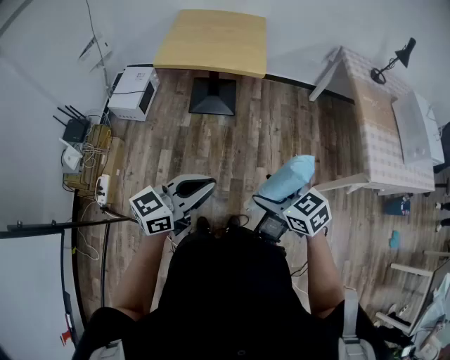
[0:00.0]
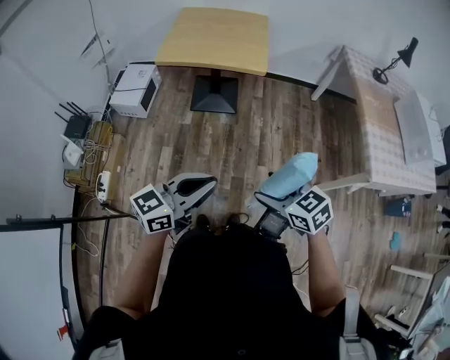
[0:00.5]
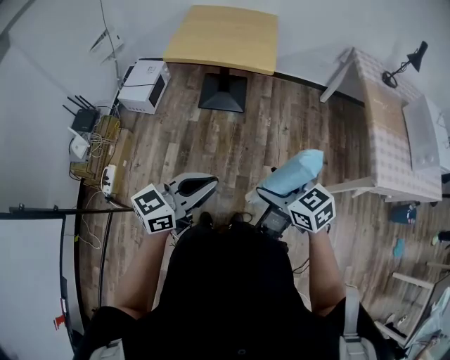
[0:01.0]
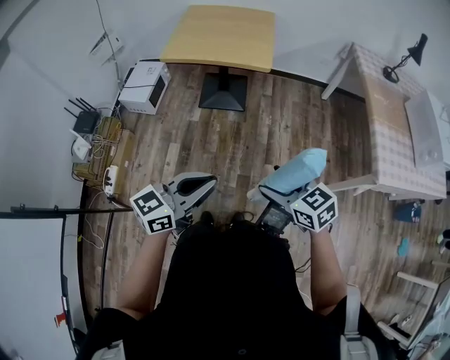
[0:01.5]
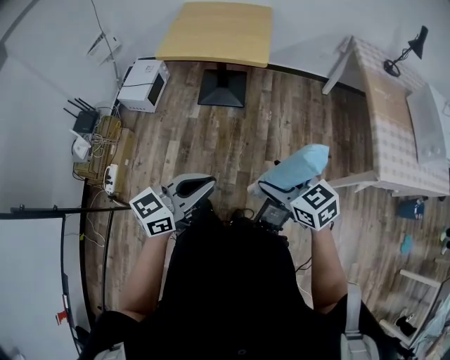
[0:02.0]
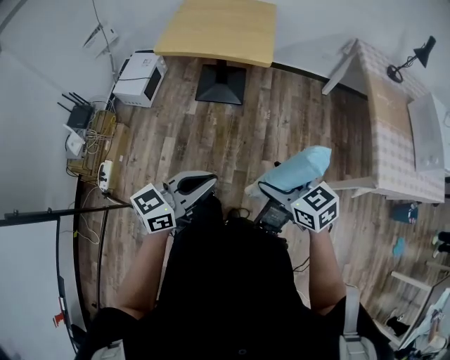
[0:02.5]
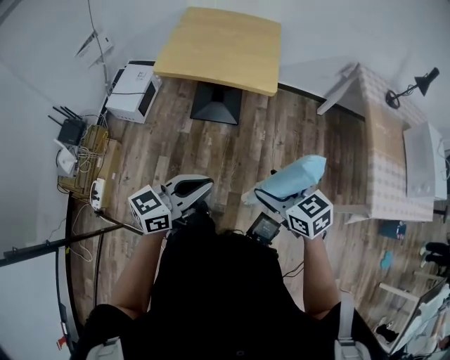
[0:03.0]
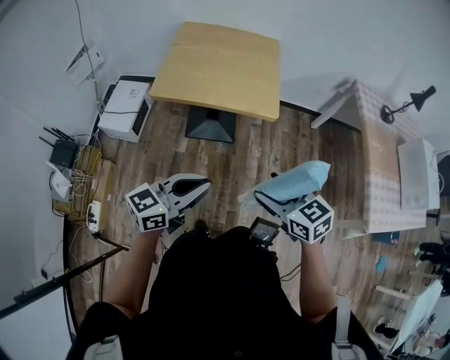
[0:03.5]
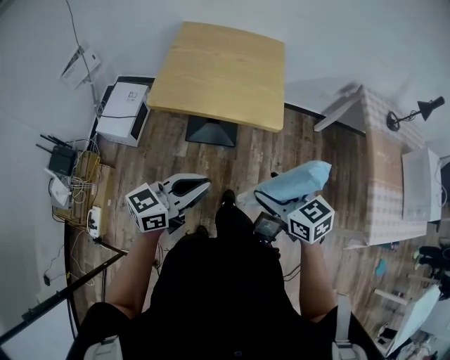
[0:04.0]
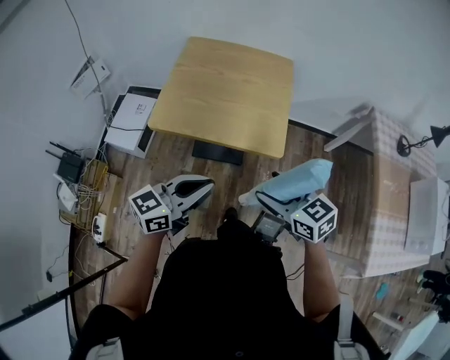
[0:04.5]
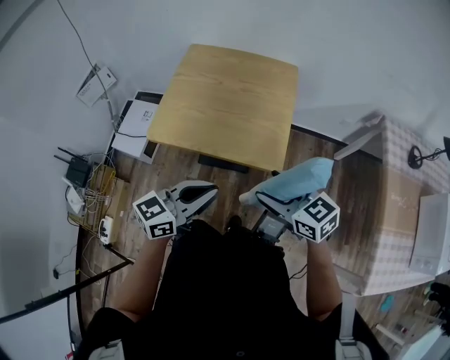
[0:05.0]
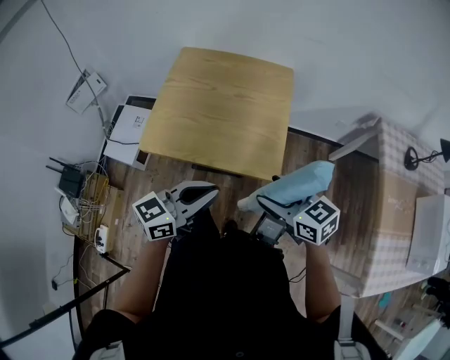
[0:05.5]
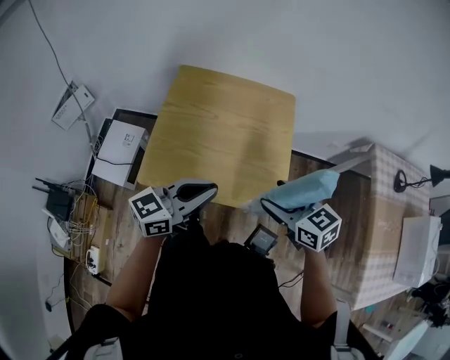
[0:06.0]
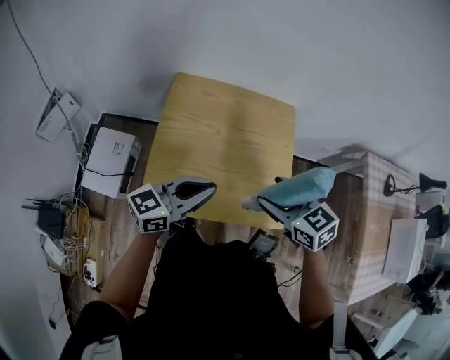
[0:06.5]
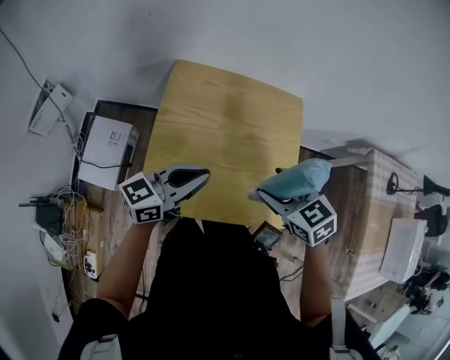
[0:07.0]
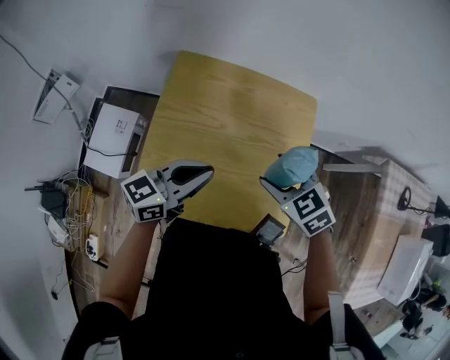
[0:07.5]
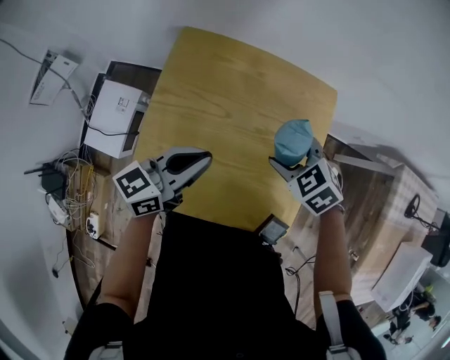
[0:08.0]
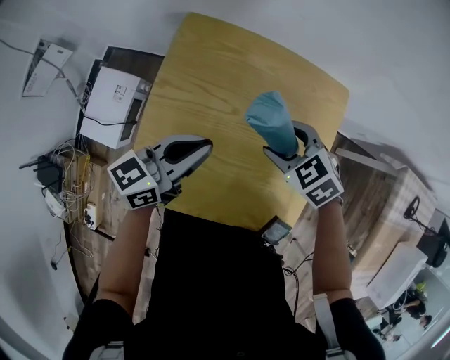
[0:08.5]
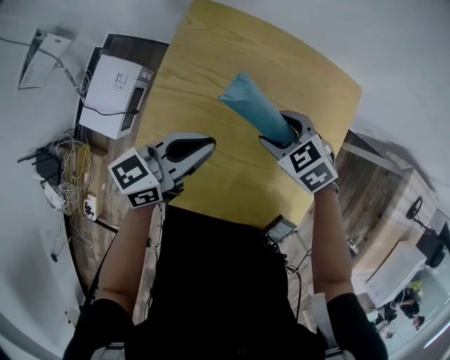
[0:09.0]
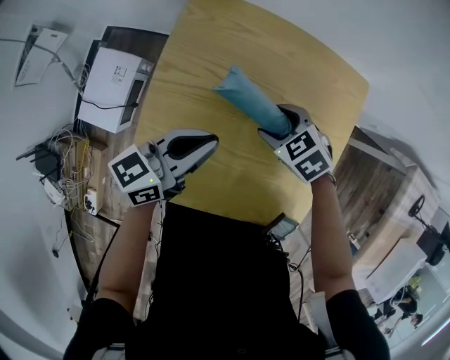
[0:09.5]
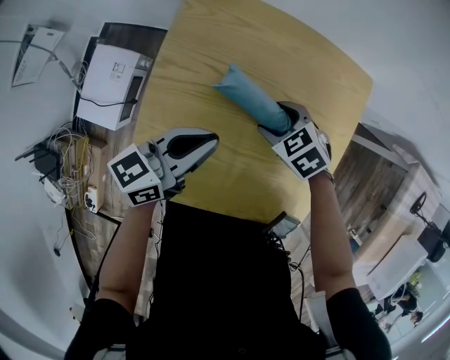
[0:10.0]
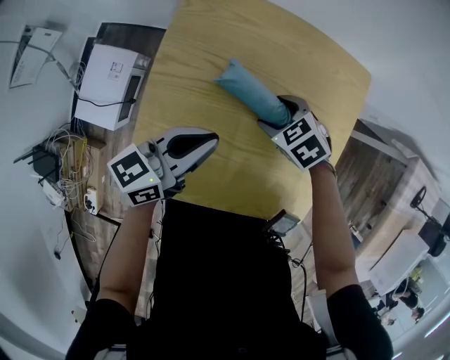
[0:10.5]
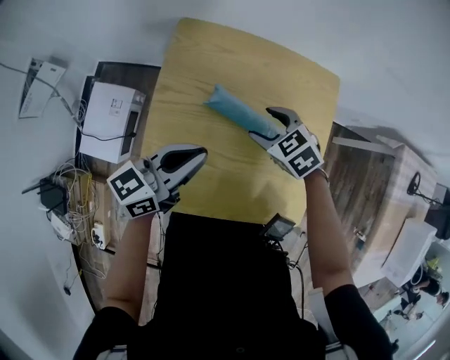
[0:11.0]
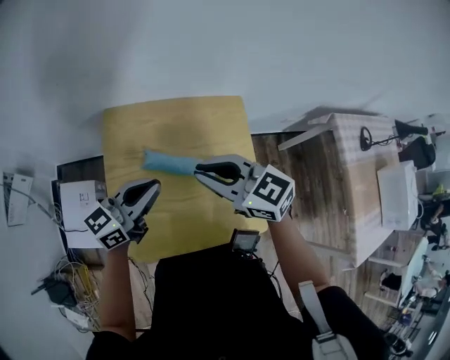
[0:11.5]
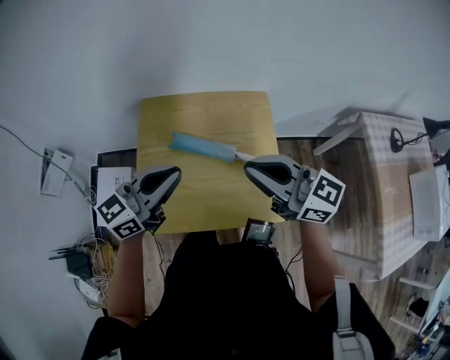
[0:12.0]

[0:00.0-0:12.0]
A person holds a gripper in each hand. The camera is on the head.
0:00.0 to 0:02.0: The grippers both shift to the right by about 5 cm.
0:02.0 to 0:04.0: Both grippers move forward and to the left, roughly 35 cm.
0:04.0 to 0:06.0: Both grippers move forward, roughly 30 cm.
0:06.0 to 0:08.0: Both grippers move forward and downward, approximately 25 cm. The right gripper tips its fingers downward by roughly 30 degrees.
0:08.0 to 0:10.0: The right gripper heads downward and to the left, covering about 15 cm; the left gripper moves downward, about 5 cm.
0:10.0 to 0:12.0: The left gripper is displaced upward and to the right by about 20 cm, and changes its angle by approximately 30 degrees. Meanwhile the right gripper heads upward, covering approximately 30 cm, points its fingers some 70 degrees further upward, and closes up.

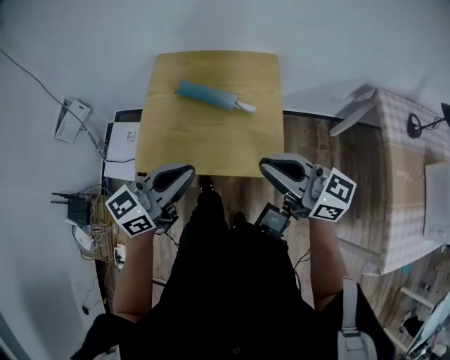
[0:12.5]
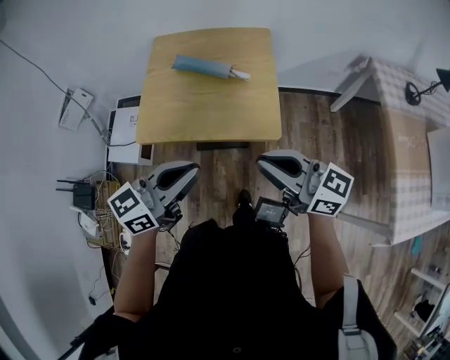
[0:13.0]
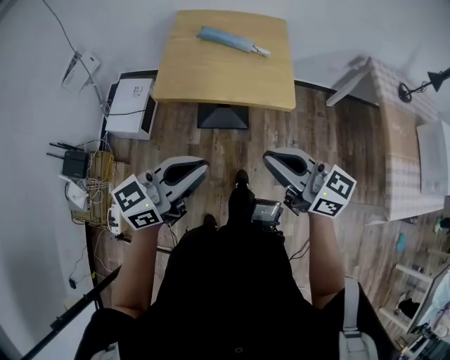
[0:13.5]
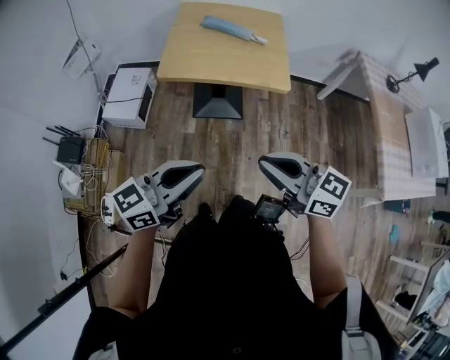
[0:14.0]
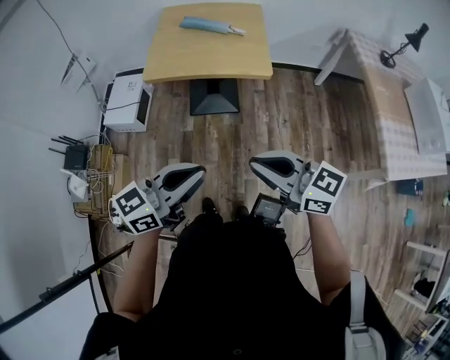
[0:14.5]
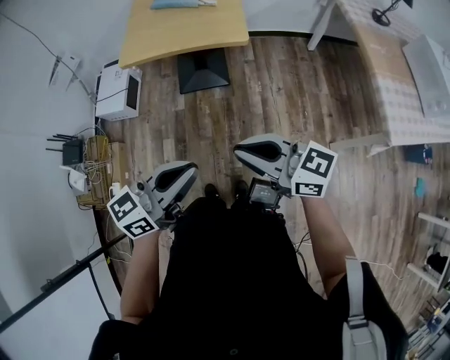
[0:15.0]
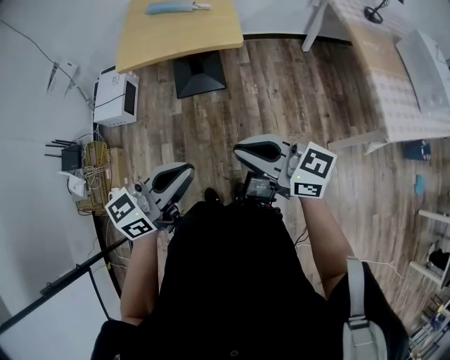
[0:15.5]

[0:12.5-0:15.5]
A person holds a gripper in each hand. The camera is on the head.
0:12.5 to 0:14.0: Both grippers are carried backward, about 40 cm.
0:14.0 to 0:15.5: Both grippers travel together to the right and backward, about 20 cm.

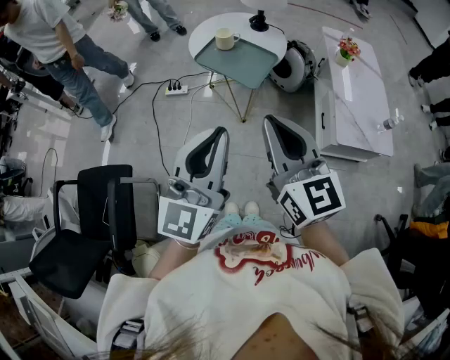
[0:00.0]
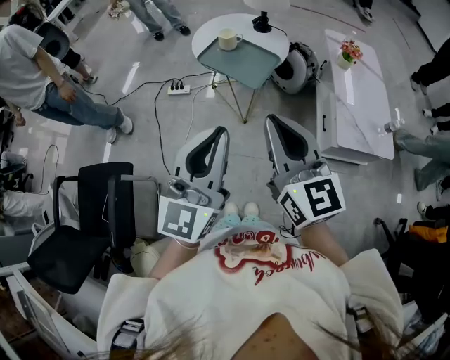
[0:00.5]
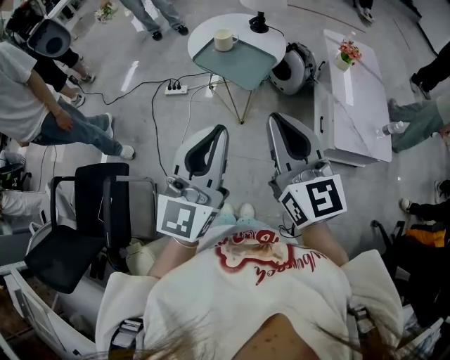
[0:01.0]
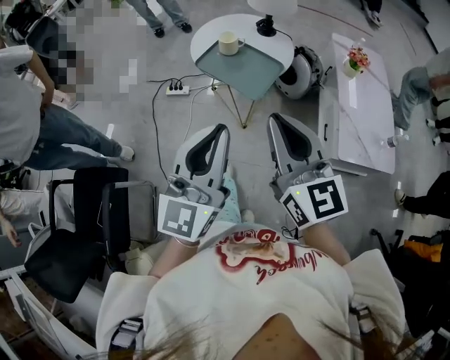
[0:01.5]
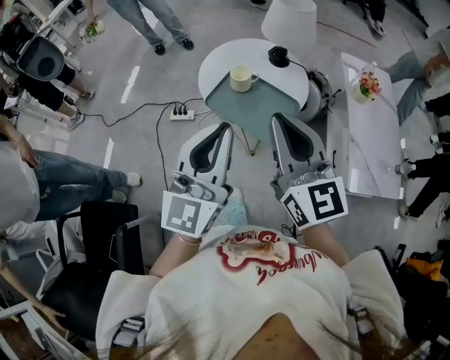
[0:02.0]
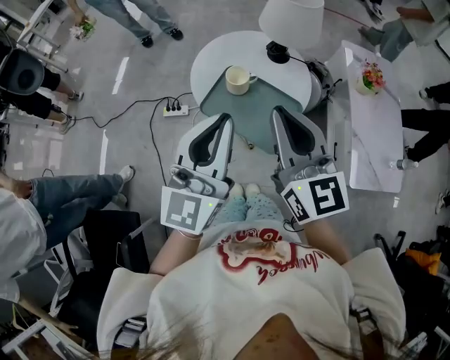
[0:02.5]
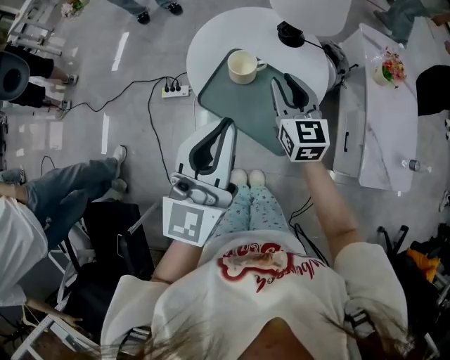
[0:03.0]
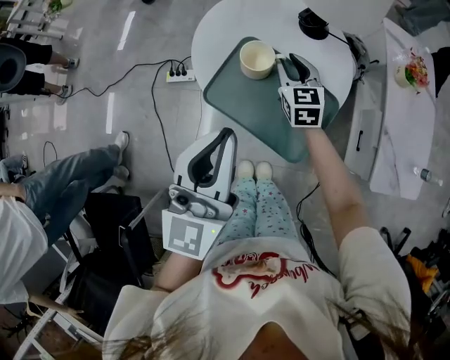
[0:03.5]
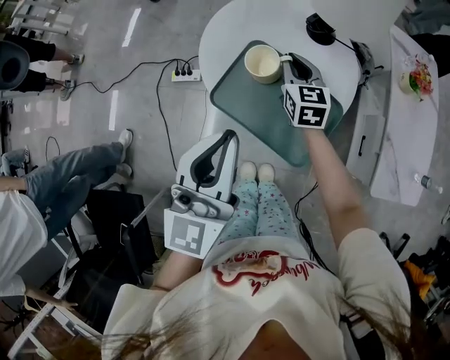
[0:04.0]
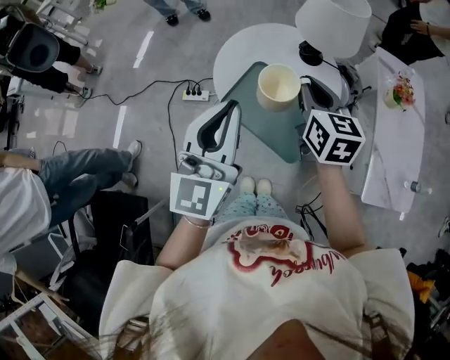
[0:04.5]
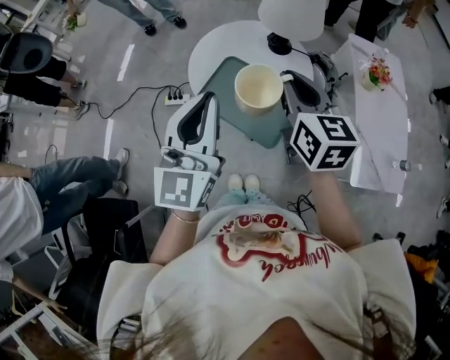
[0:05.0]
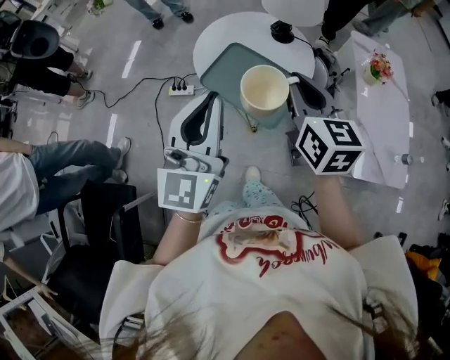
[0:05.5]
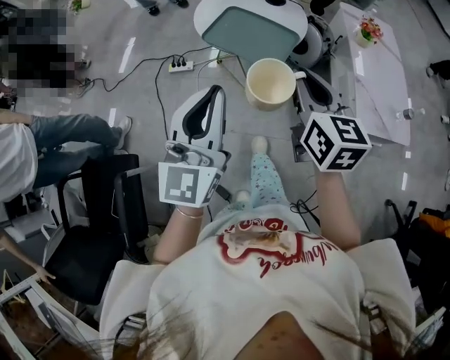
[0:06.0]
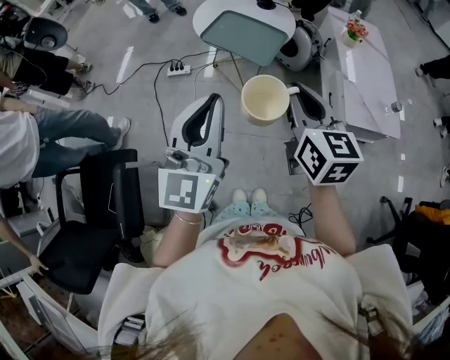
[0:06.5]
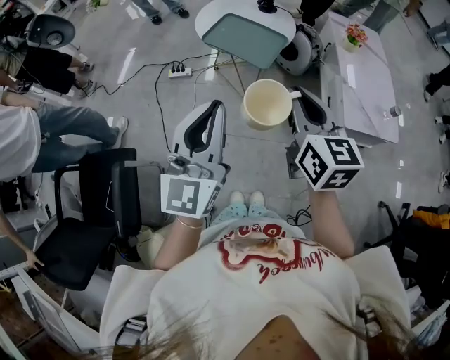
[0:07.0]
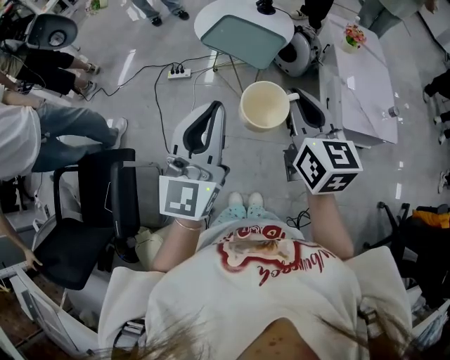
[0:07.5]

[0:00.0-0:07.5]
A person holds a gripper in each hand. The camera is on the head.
0:00.0 to 0:02.0: Both grippers move forward, approximately 25 cm.
0:02.0 to 0:04.0: The right gripper shifts approximately 50 cm forward and downward, and rotates approximately 30 degrees. Meanwhile the left gripper moves forward and downward, about 20 cm.
0:04.0 to 0:05.5: The left gripper moves backward and upward, about 15 cm. Meanwhile the right gripper shifts some 35 cm upward and backward.
0:05.5 to 0:07.5: The two grippers go roughly 30 cm backward.

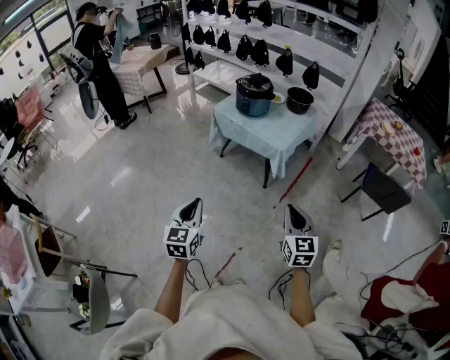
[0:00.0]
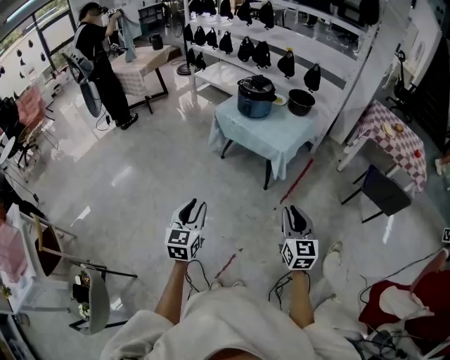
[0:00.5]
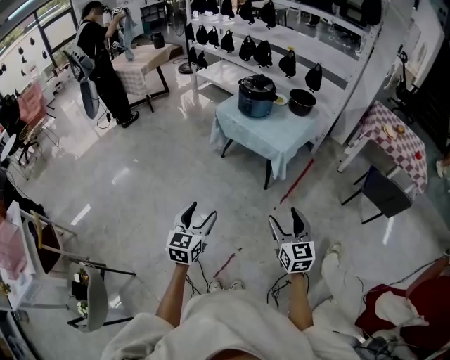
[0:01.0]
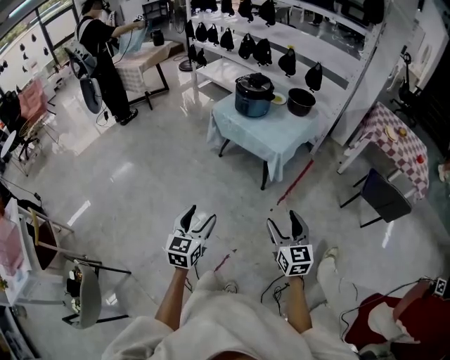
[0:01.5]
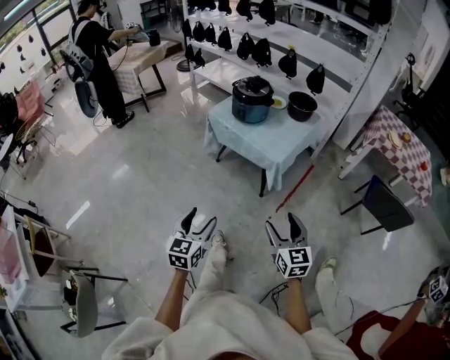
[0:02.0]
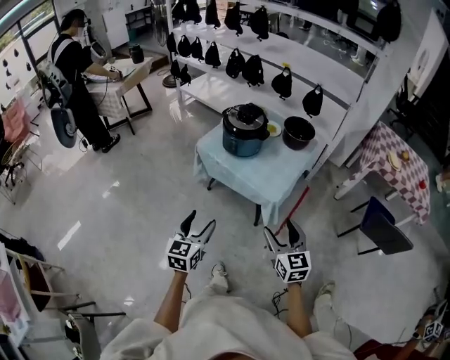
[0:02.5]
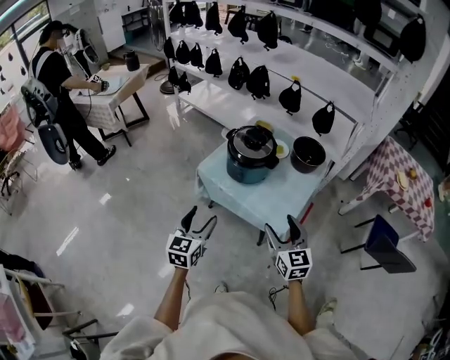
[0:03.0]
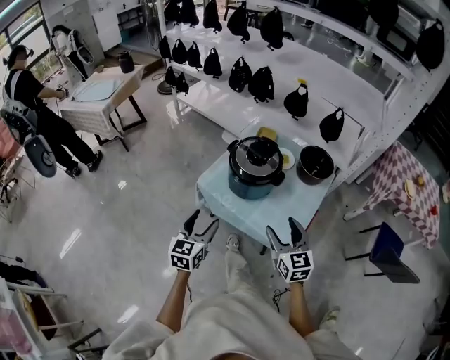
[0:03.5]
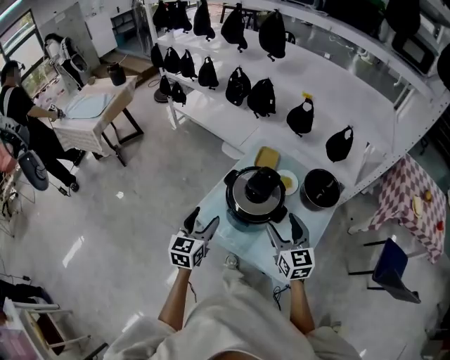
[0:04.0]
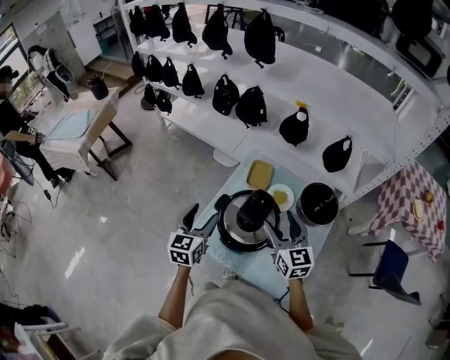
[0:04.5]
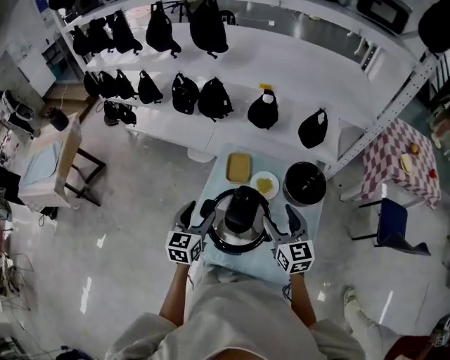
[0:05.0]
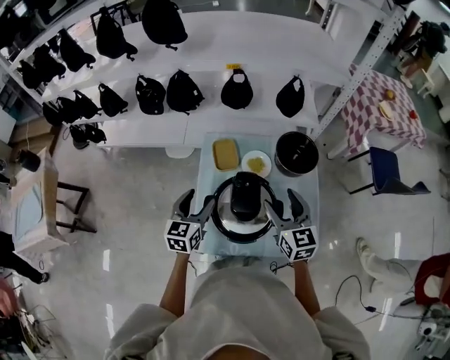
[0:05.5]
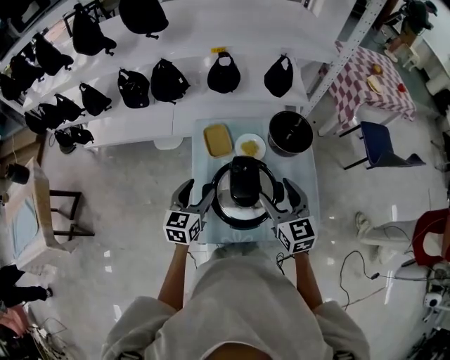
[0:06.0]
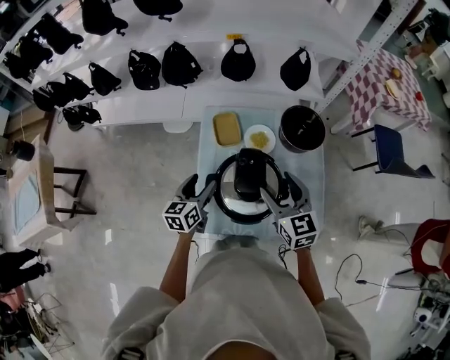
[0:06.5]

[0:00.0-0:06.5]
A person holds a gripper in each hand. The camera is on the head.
0:00.0 to 0:02.0: The right gripper goes about 10 cm forward, and opens its fingers. Meanwhile the left gripper shifts approximately 15 cm to the right, forward and downward, and opens up.
0:02.0 to 0:04.5: The pair of grippers is taken forward, approximately 90 cm.
0:04.5 to 0:06.5: The left gripper ends up some 15 cm from where it was, and changes its angle by roughly 30 degrees. The right gripper rotates some 20 degrees.
